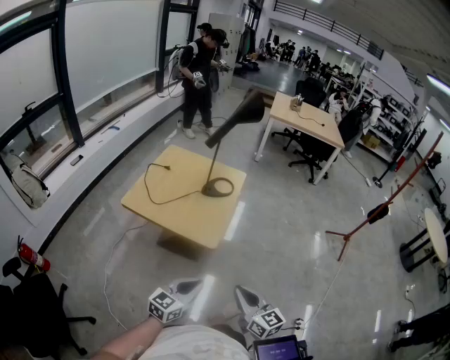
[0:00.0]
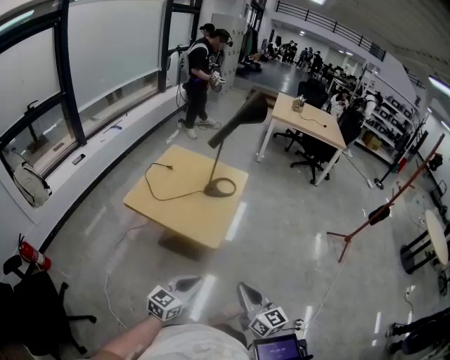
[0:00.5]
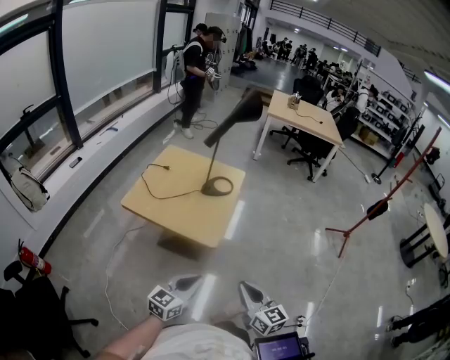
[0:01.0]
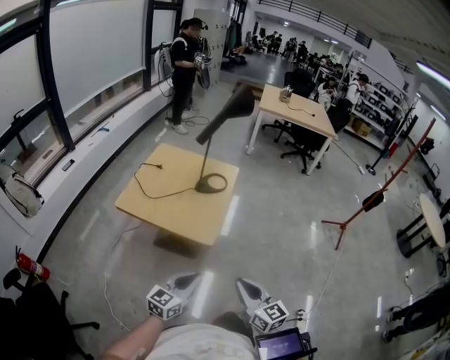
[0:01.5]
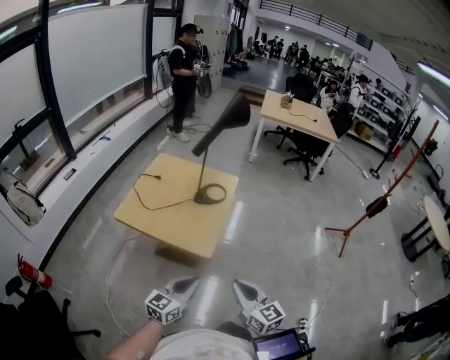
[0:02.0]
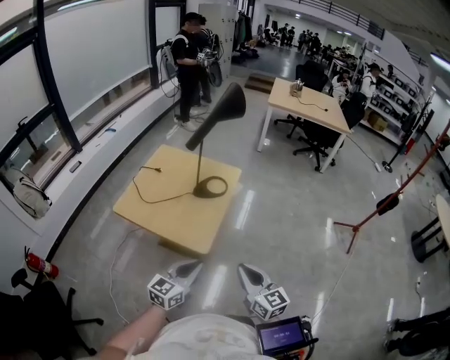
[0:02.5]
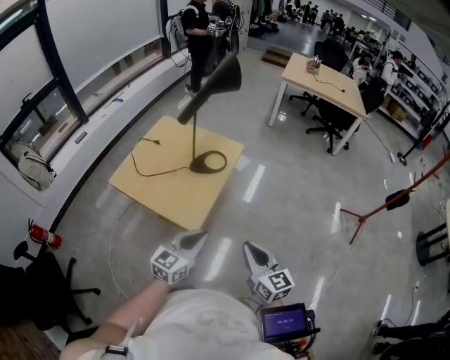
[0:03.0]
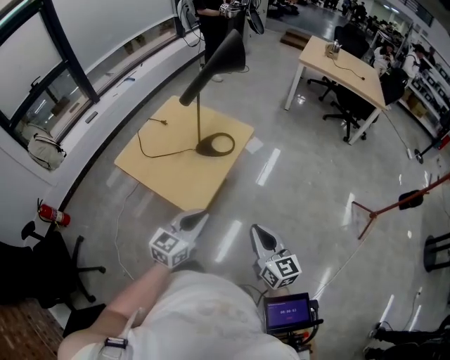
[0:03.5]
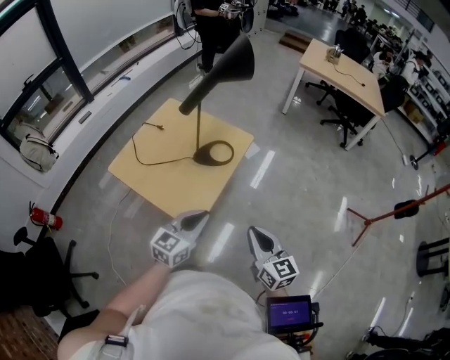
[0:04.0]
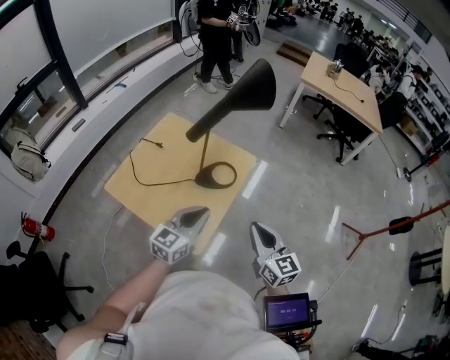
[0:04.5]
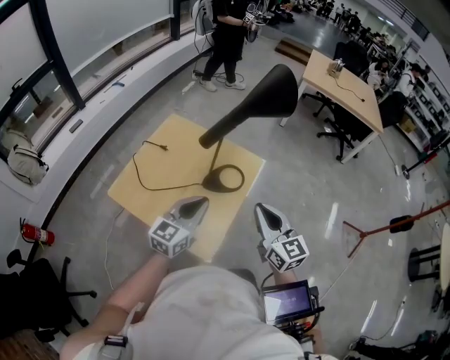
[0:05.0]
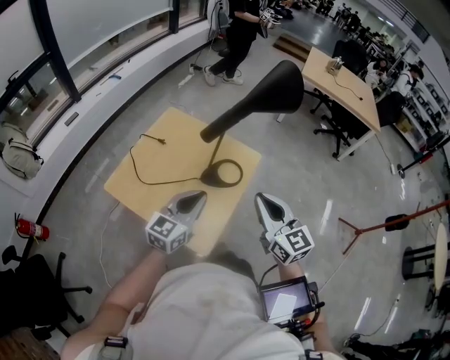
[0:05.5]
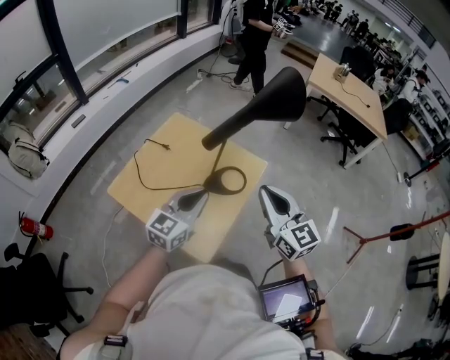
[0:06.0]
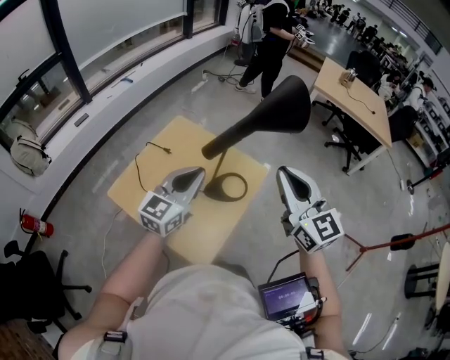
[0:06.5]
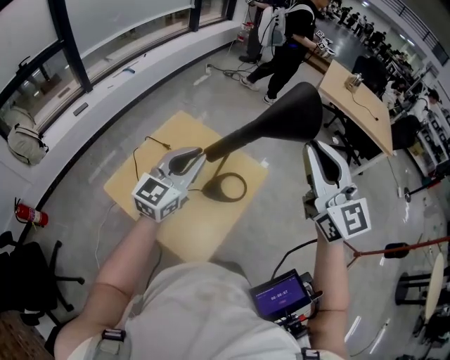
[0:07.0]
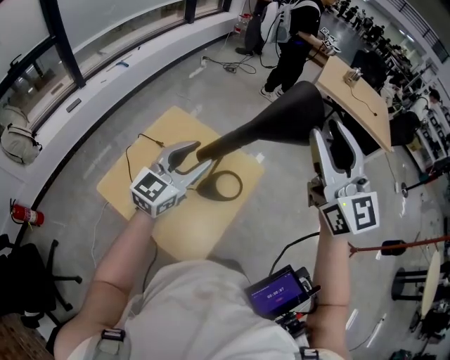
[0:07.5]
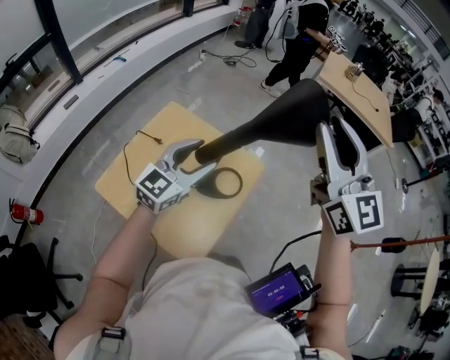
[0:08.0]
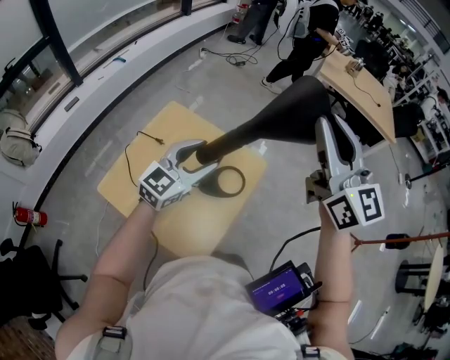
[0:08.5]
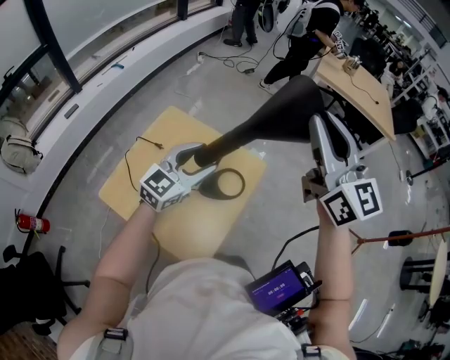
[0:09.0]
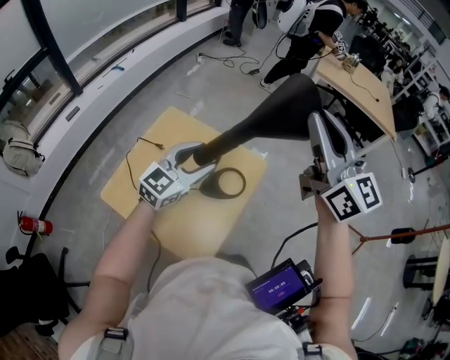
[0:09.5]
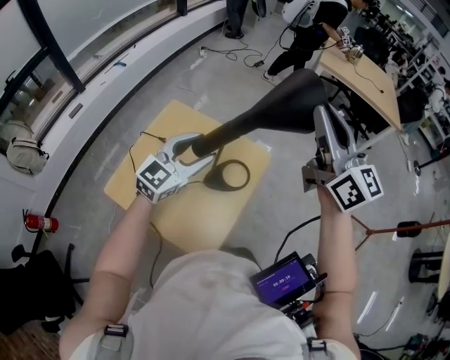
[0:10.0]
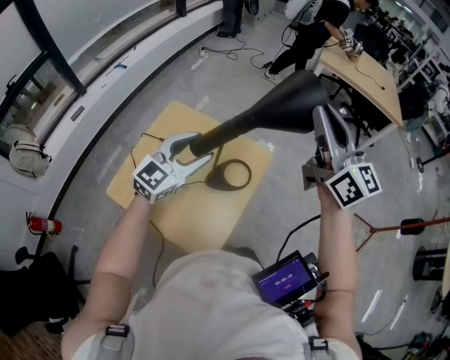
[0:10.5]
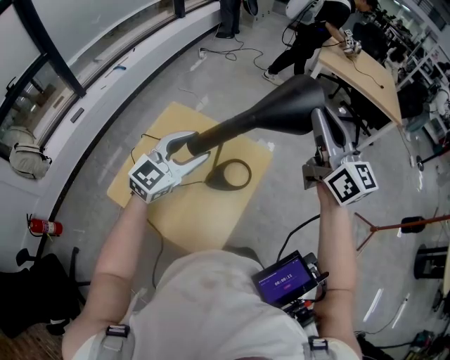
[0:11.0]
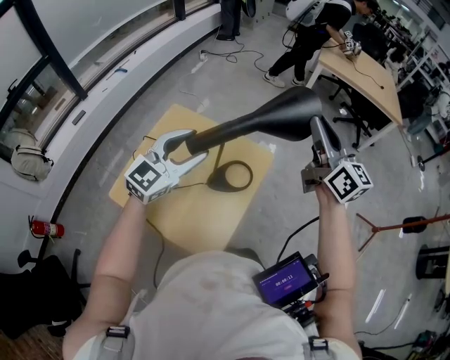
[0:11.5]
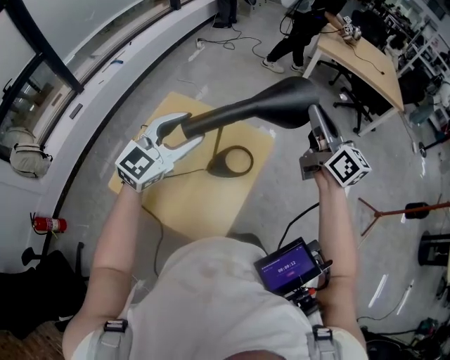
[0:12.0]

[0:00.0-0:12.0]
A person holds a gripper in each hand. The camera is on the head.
0:00.0 to 0:02.0: The grippers both shift forward by about 5 cm.
0:02.0 to 0:04.0: The grippers both shift forward and to the right by some 25 cm.
0:04.0 to 0:06.0: The left gripper moves forward and to the left, approximately 20 cm. Meanwhile the right gripper goes about 25 cm forward, upward and to the left.
0:06.0 to 0:08.0: The right gripper is displaced upward and forward by some 25 cm, swivels roughly 20 degrees, and opens; the left gripper is displaced forward by approximately 15 cm, and opens its fingers.
0:08.0 to 0:10.0: The right gripper changes its angle by approximately 20 degrees.
0:10.0 to 0:12.0: The right gripper travels downward by about 10 cm. Meanwhile the left gripper shifts by some 5 cm.

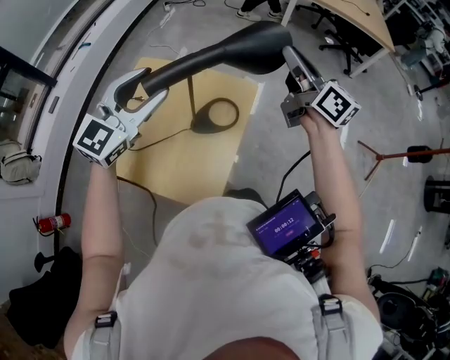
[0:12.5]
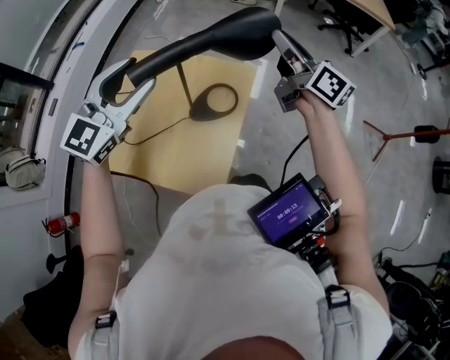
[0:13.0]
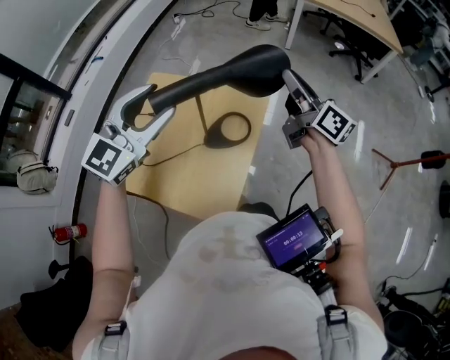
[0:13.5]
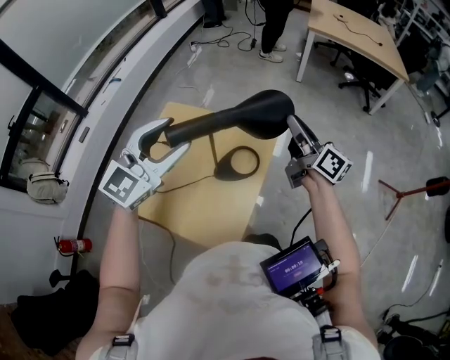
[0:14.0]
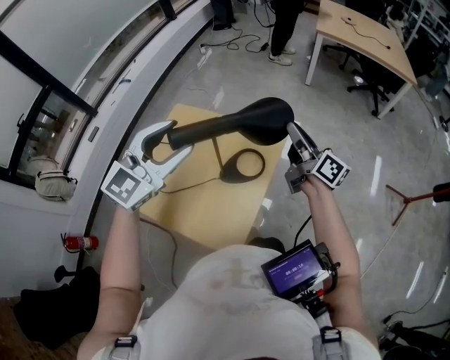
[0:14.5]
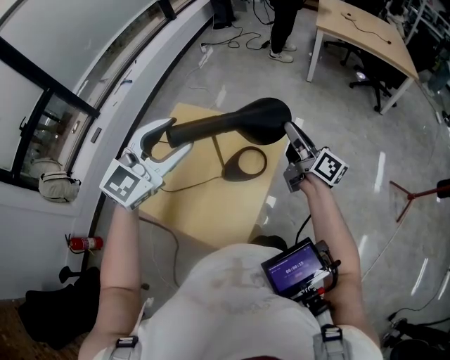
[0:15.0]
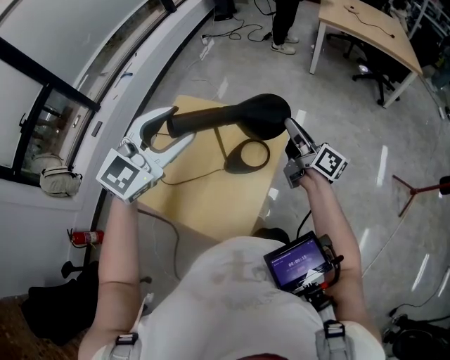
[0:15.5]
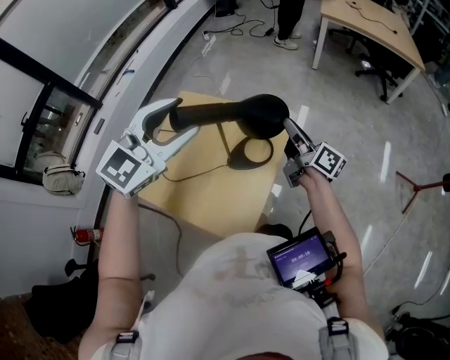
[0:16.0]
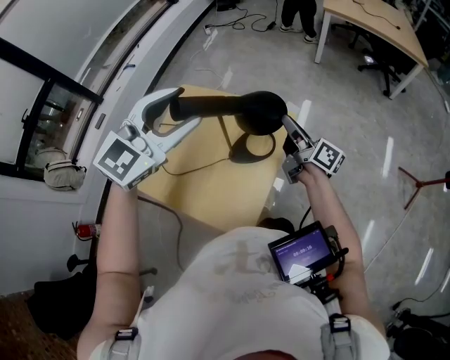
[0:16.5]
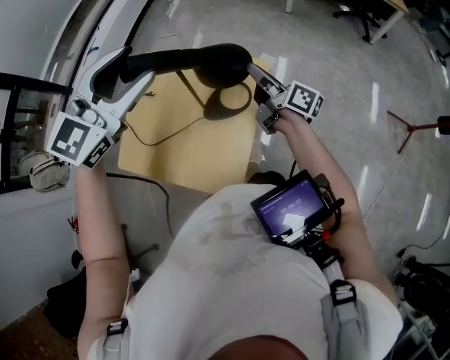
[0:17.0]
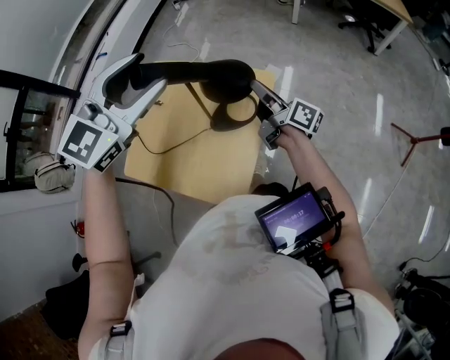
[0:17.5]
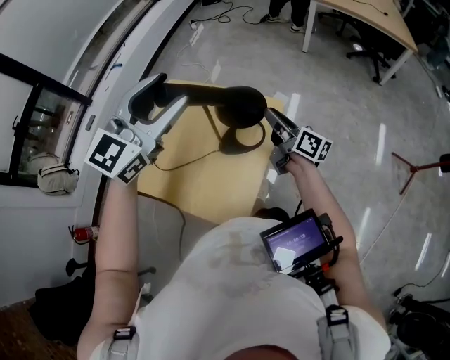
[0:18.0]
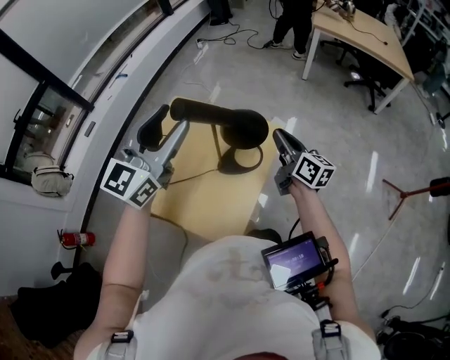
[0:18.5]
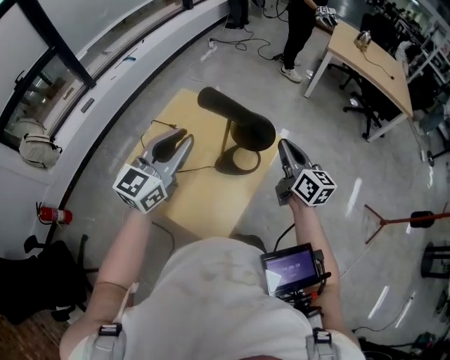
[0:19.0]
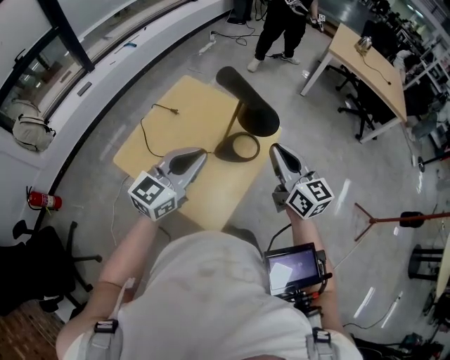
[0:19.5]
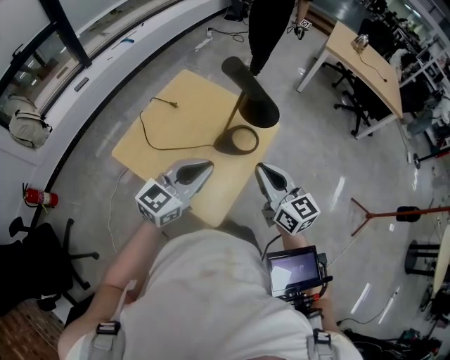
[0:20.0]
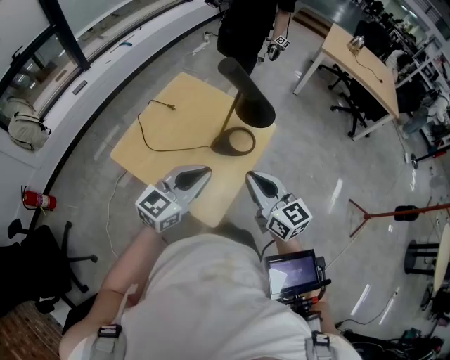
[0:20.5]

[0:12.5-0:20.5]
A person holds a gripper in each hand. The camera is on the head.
0:12.5 to 0:14.5: The right gripper moves downward, roughly 10 cm.
0:14.5 to 0:16.5: The right gripper moves downward, some 10 cm.
0:16.5 to 0:18.5: The left gripper changes its angle by some 30 degrees, while the right gripper turns by about 20 degrees.
0:18.5 to 0:20.5: The left gripper travels backward and downward by roughly 25 cm, and closes. Meanwhile the right gripper is displaced backward and to the left by about 25 cm, and rotates some 40 degrees.

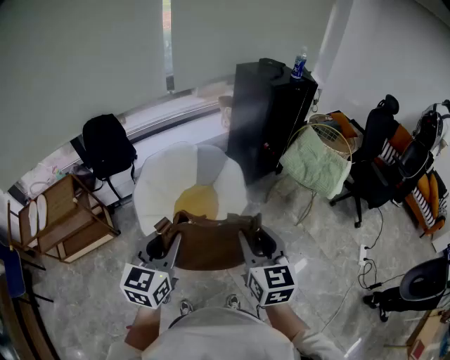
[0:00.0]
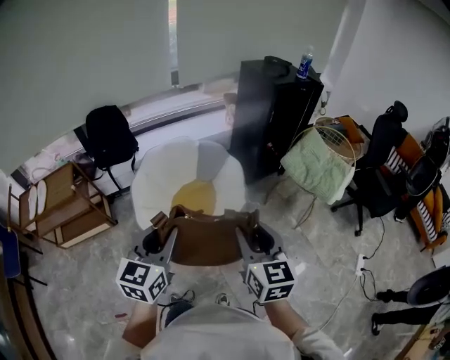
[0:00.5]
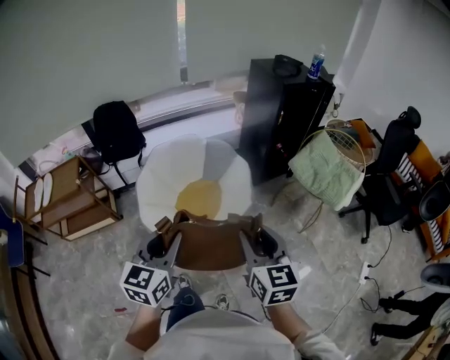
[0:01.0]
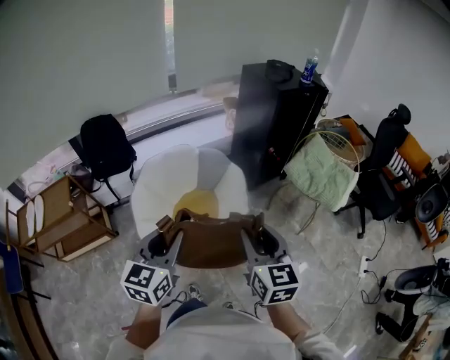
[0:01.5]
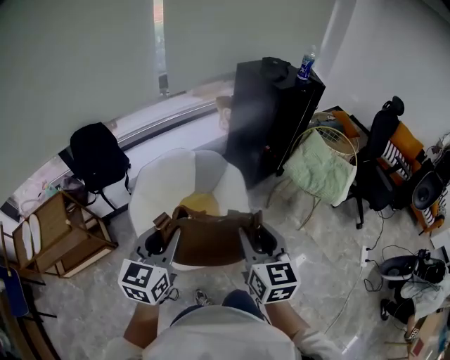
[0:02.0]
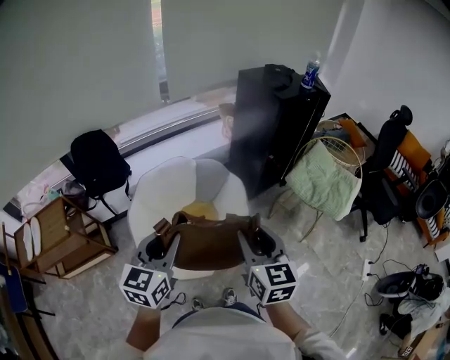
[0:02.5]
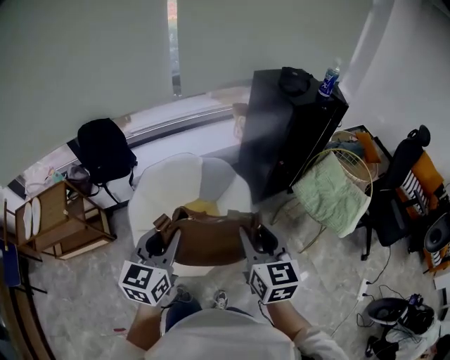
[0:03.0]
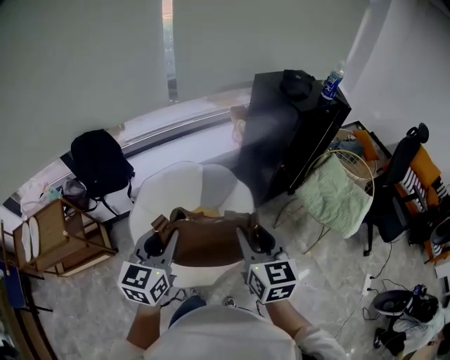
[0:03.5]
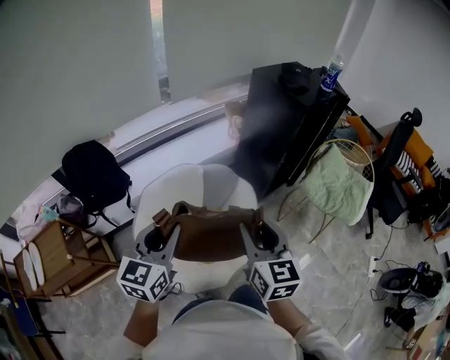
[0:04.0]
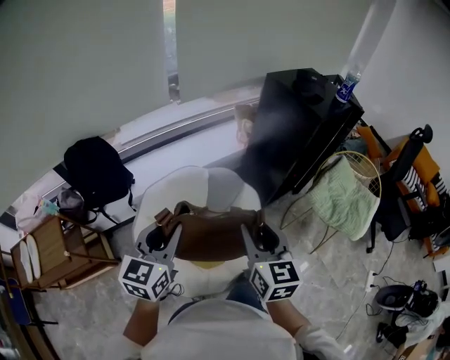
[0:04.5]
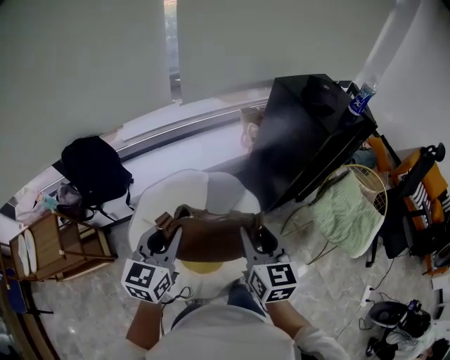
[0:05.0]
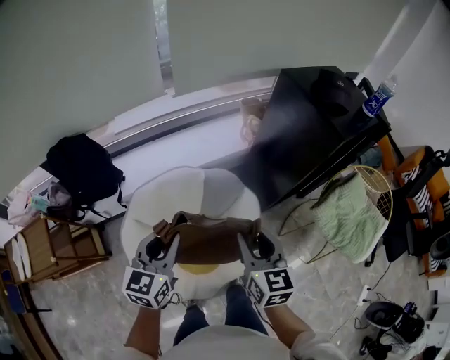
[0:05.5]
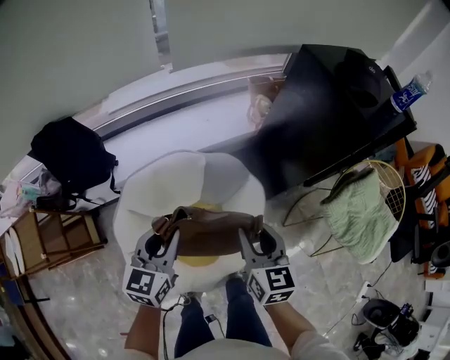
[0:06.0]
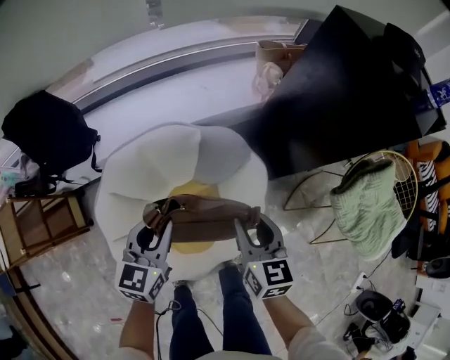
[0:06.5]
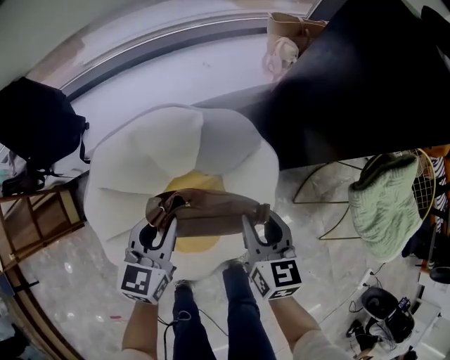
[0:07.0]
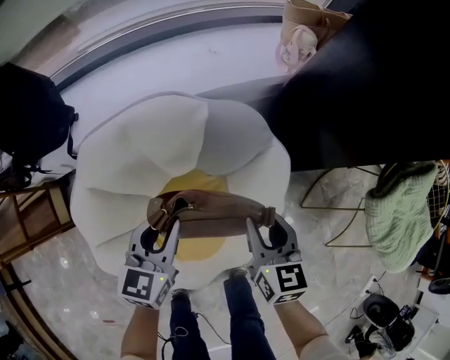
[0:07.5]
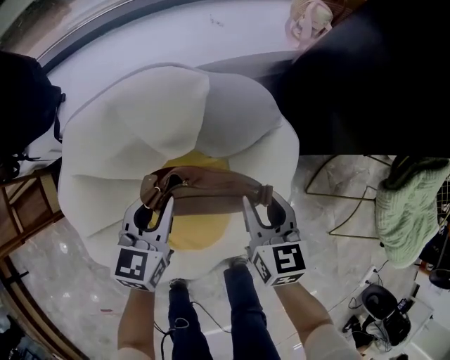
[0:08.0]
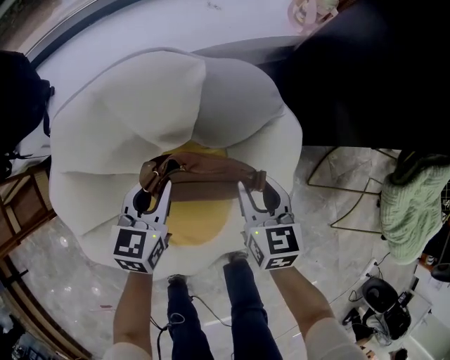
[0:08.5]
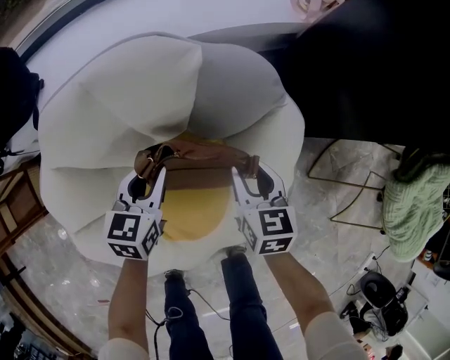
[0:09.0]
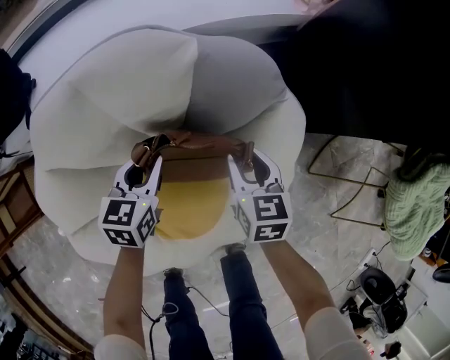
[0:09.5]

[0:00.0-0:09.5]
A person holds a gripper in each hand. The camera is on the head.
0:00.0 to 0:02.0: The grippers both shift forward by approximately 15 cm.
0:02.0 to 0:04.0: The grippers both shift forward by about 20 cm.
0:04.0 to 0:05.5: Both grippers travel together forward and downward, roughly 20 cm.
0:05.5 to 0:07.5: The two grippers go approximately 35 cm downward.
0:07.5 to 0:09.5: The grippers both shift downward by some 20 cm.
